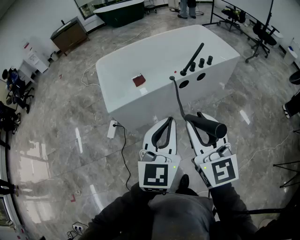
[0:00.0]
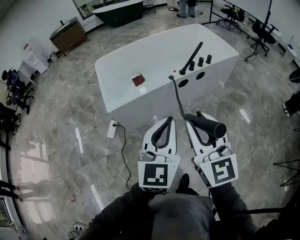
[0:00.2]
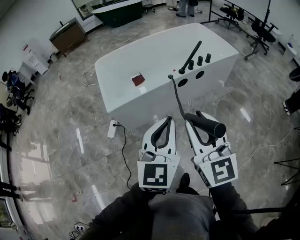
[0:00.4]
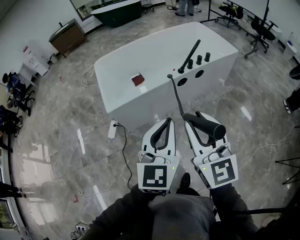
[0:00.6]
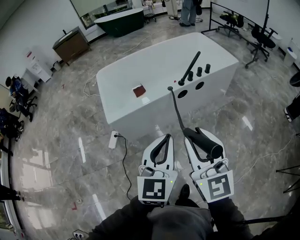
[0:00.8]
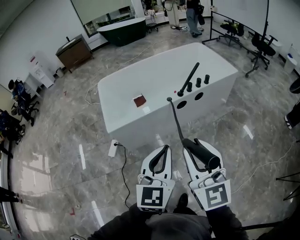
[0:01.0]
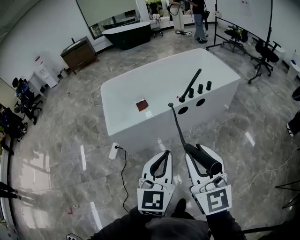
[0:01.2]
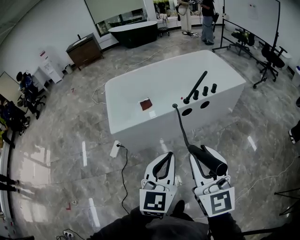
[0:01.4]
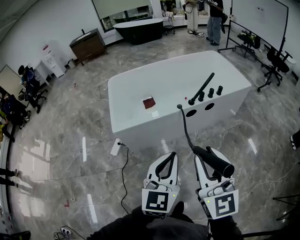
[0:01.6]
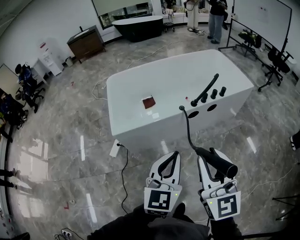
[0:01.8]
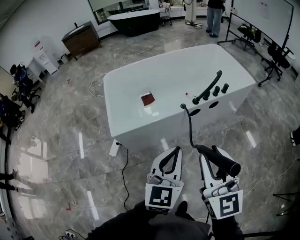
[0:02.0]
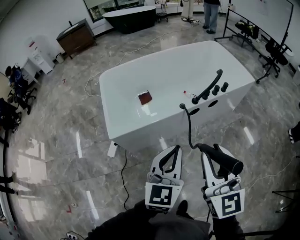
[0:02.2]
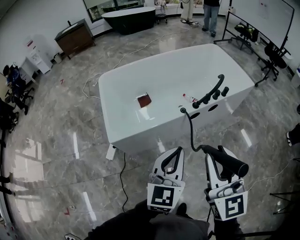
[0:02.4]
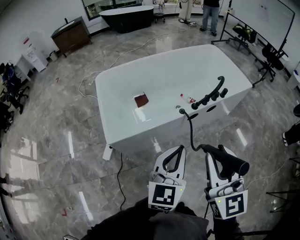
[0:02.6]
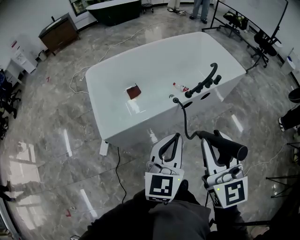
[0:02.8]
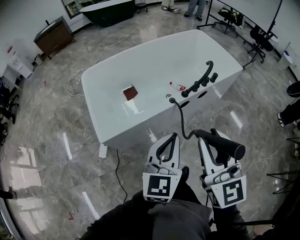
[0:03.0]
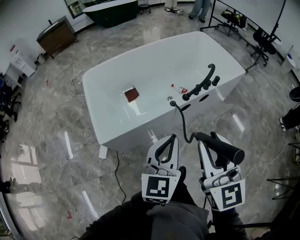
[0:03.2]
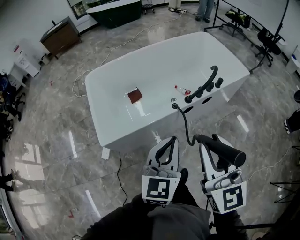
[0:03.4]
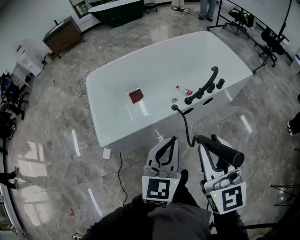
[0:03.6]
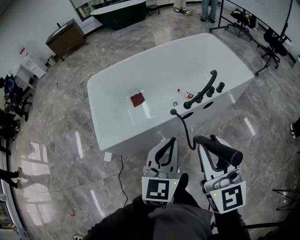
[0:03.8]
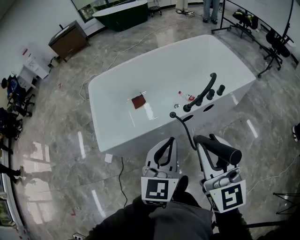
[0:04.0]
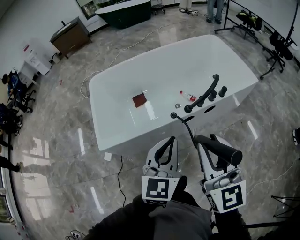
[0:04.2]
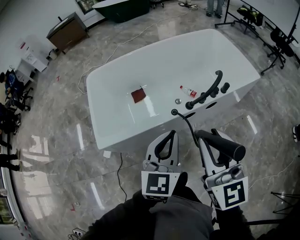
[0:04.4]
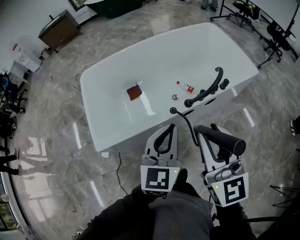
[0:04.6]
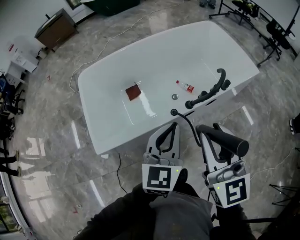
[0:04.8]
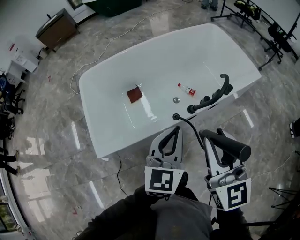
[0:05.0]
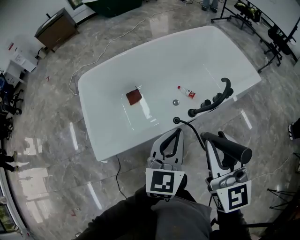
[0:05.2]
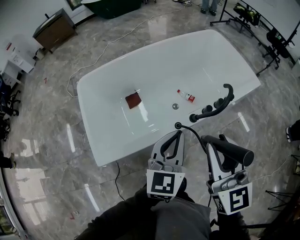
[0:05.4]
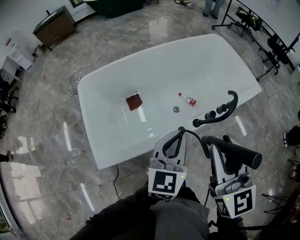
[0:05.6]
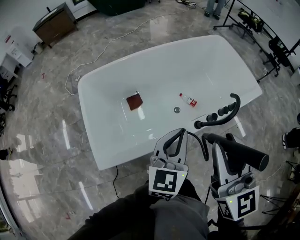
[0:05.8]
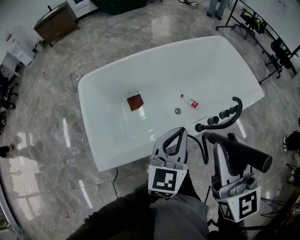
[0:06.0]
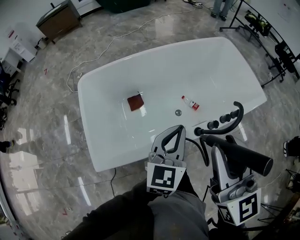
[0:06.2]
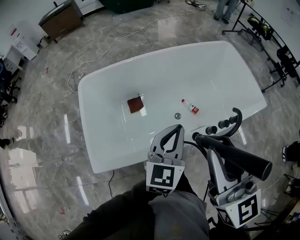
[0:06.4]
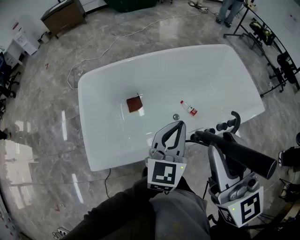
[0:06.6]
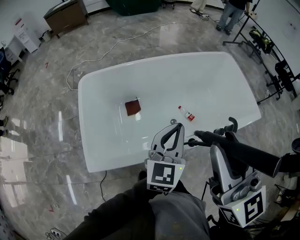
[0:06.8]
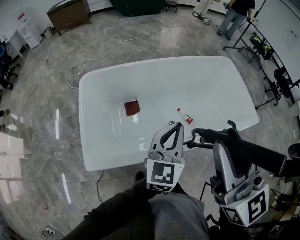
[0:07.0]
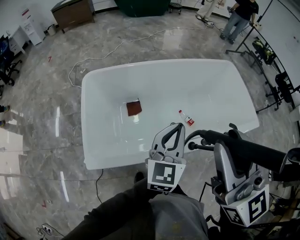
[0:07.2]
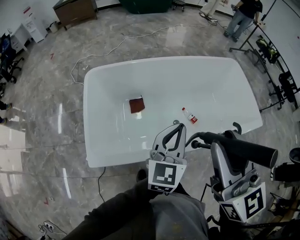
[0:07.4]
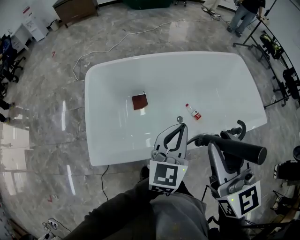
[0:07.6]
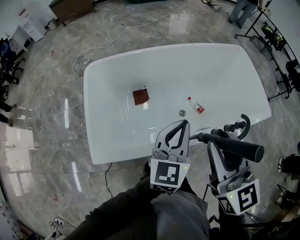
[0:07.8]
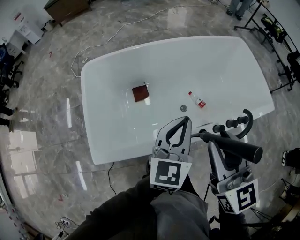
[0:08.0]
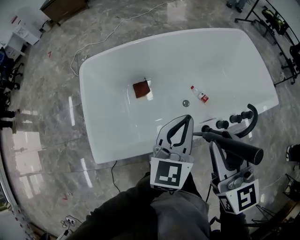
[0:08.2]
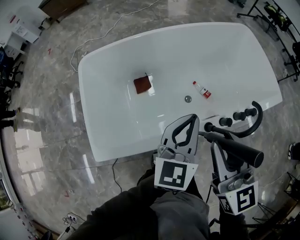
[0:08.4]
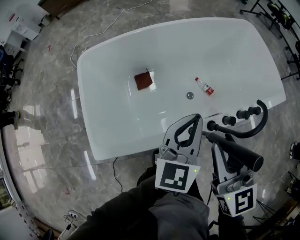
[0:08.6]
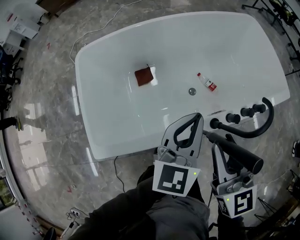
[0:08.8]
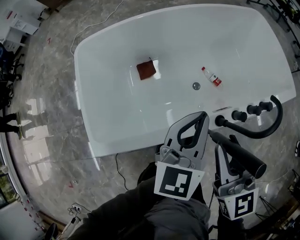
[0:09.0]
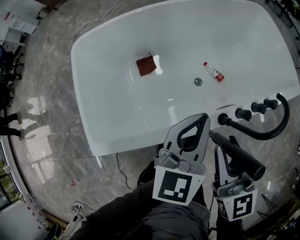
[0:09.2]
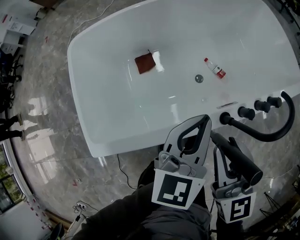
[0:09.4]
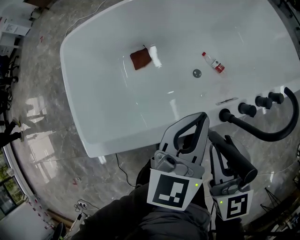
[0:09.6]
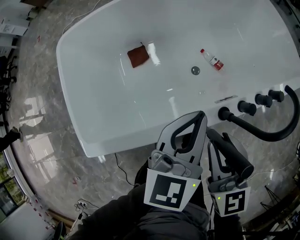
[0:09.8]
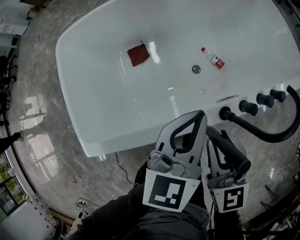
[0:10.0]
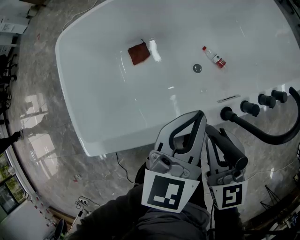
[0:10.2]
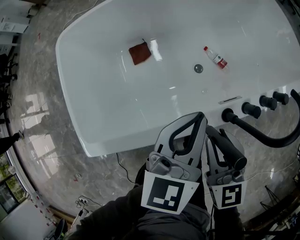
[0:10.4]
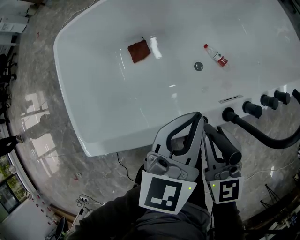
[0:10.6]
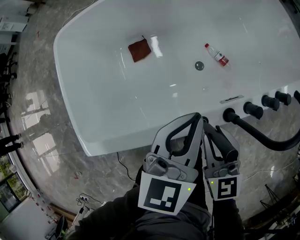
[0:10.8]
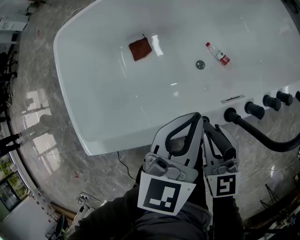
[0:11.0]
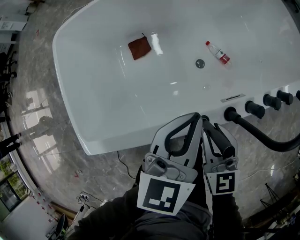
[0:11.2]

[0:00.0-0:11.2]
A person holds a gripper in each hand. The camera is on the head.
0:00.0 to 0:01.6: The left gripper ends up roughly 5 cm from where it was; the right gripper heads to the right, covering some 5 cm.
0:01.6 to 0:03.2: The two grippers go roughly 20 cm forward.
0:03.2 to 0:04.8: The two grippers go about 15 cm forward.
0:04.8 to 0:06.4: The left gripper moves forward, about 15 cm. Meanwhile the right gripper travels forward, to the left and upward by about 15 cm.
0:06.4 to 0:08.0: The right gripper moves downward, some 5 cm.
0:08.0 to 0:09.6: The left gripper shifts approximately 15 cm downward; the right gripper is displaced downward by about 20 cm.
0:09.6 to 0:11.2: The right gripper heads downward, covering roughly 15 cm.

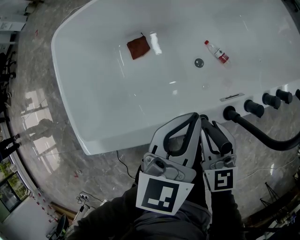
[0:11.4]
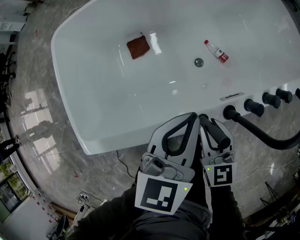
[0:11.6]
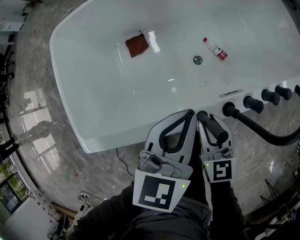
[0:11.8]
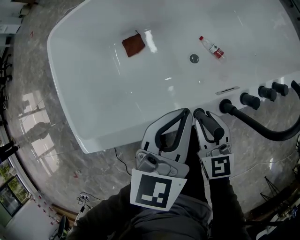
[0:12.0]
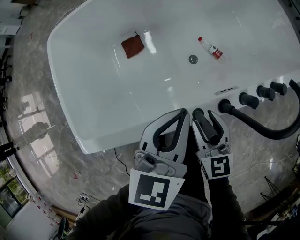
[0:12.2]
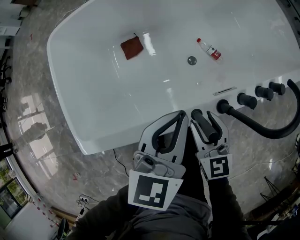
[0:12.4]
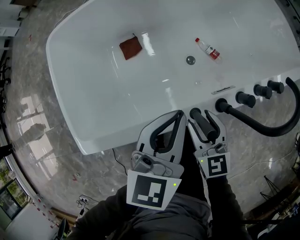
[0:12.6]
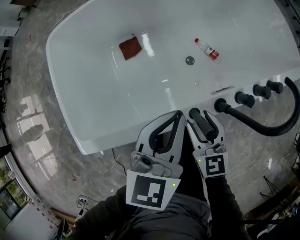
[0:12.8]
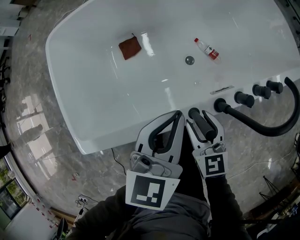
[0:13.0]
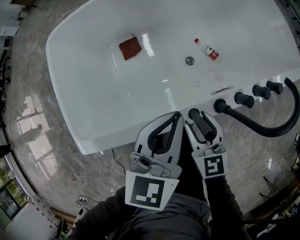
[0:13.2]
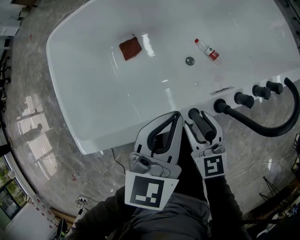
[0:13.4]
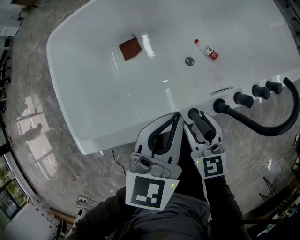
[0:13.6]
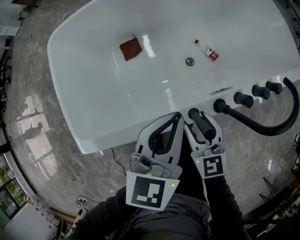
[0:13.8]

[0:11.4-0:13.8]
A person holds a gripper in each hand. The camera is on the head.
0:11.4 to 0:12.6: The right gripper opens.
0:12.6 to 0:13.8: The two grippers keep their place.

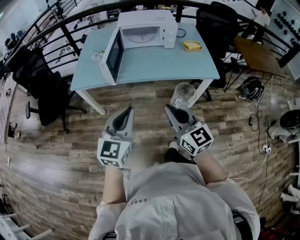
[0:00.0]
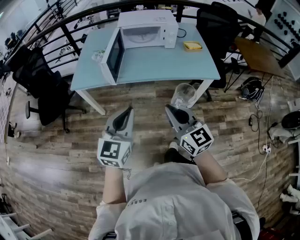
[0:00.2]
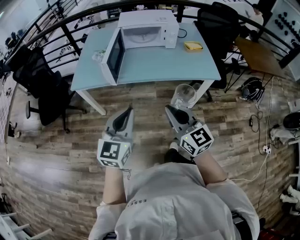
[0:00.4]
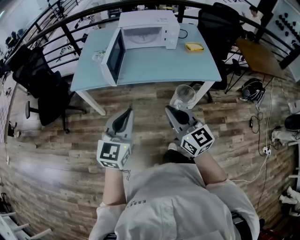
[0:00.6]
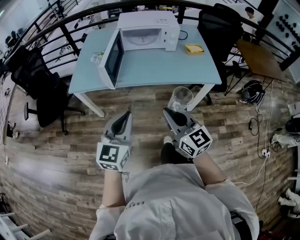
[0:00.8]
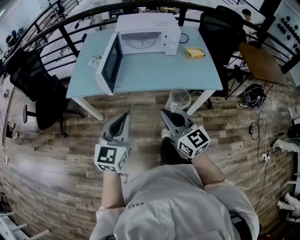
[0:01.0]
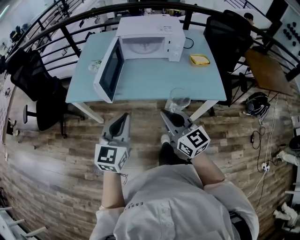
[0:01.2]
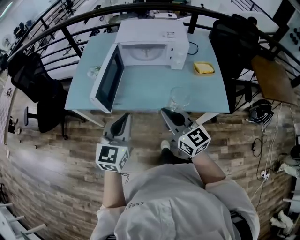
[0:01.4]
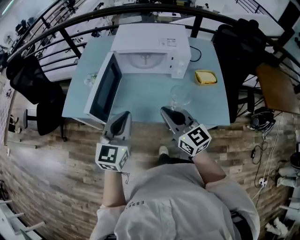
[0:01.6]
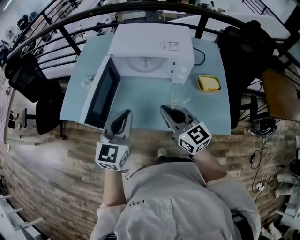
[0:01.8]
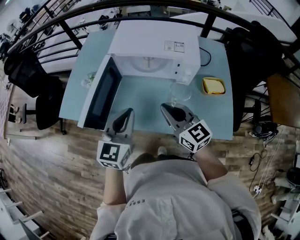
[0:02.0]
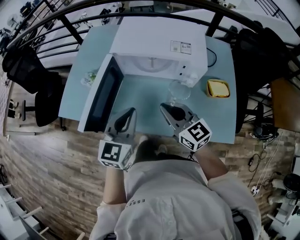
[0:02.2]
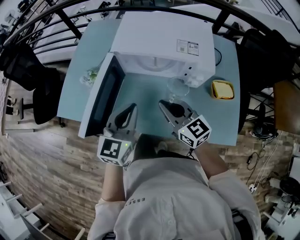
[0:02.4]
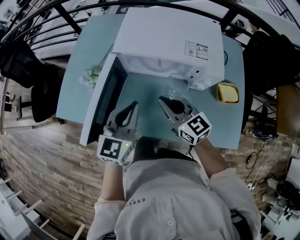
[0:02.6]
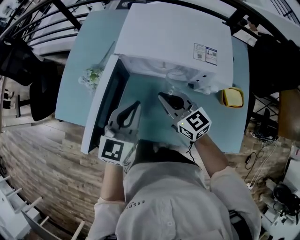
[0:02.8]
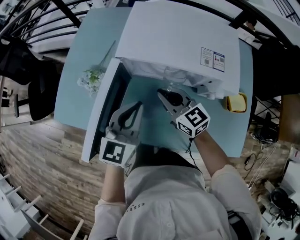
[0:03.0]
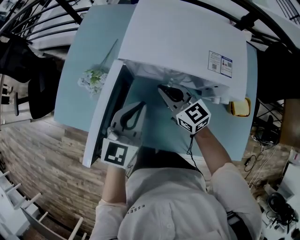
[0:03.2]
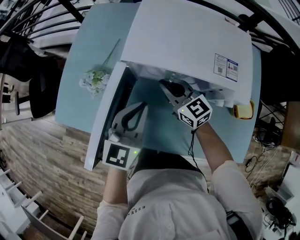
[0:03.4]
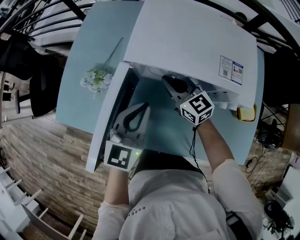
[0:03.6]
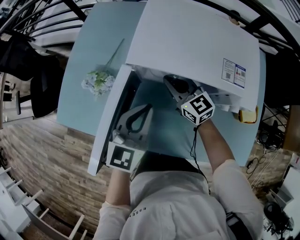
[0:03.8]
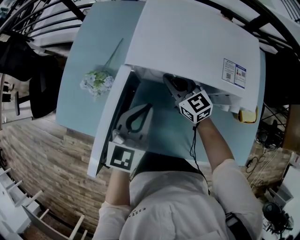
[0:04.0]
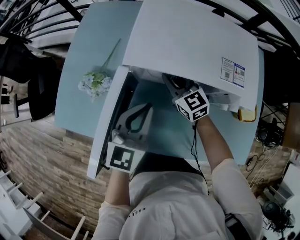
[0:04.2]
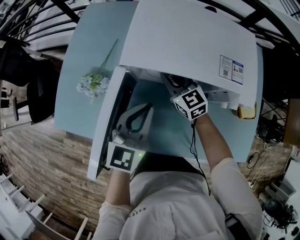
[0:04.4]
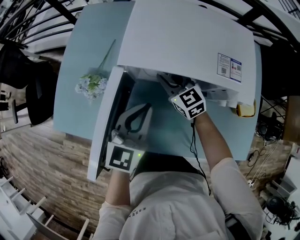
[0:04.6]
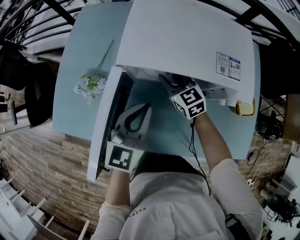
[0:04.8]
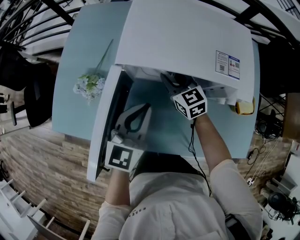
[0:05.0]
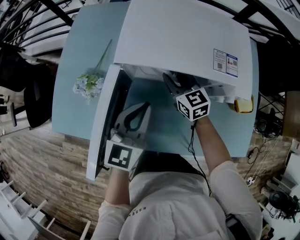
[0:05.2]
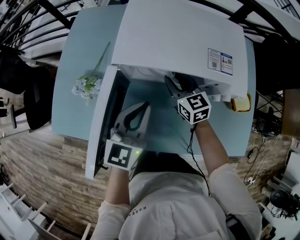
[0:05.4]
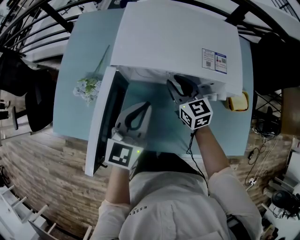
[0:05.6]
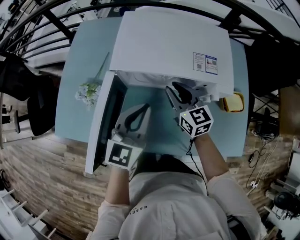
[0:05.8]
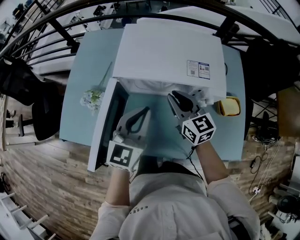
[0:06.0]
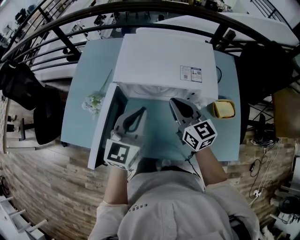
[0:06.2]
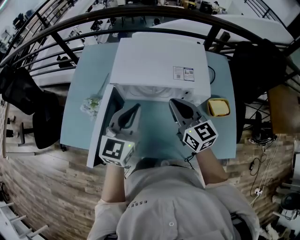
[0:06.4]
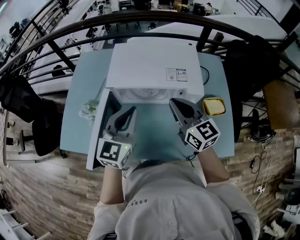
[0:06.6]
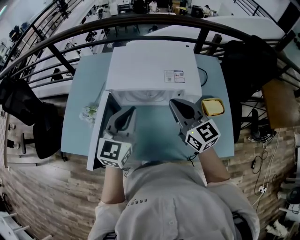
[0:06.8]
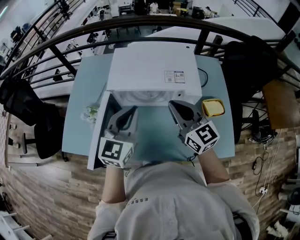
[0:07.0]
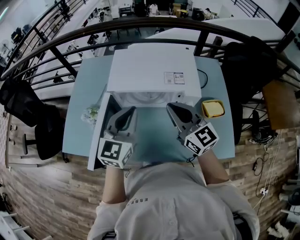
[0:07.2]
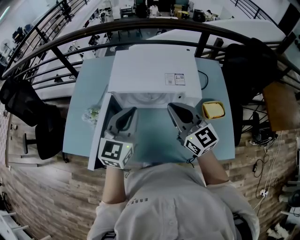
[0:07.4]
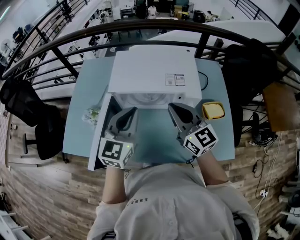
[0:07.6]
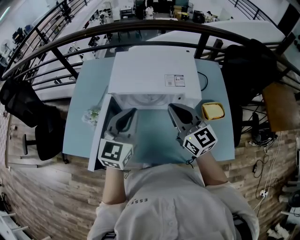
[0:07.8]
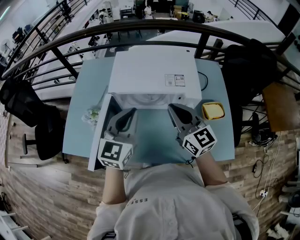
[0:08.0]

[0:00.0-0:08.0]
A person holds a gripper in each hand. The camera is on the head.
0:00.0 to 0:01.6: Both grippers travel together forward, roughly 30 cm.
0:01.6 to 0:03.2: The right gripper travels forward and downward by approximately 35 cm. The left gripper is displaced forward by some 25 cm.
0:03.2 to 0:04.8: The right gripper moves forward and downward, approximately 10 cm.
0:04.8 to 0:06.4: The left gripper is displaced upward by about 10 cm, while the right gripper is displaced upward, backward and to the right by about 25 cm, and rotates about 20 degrees.
0:06.4 to 0:08.0: The right gripper shifts by about 5 cm.

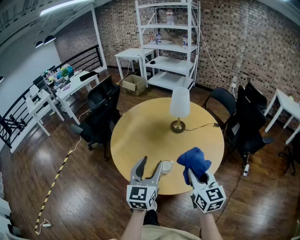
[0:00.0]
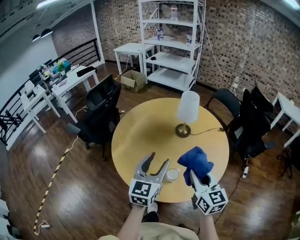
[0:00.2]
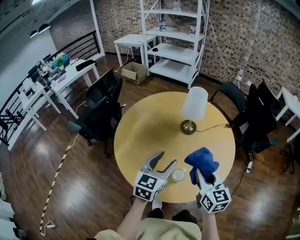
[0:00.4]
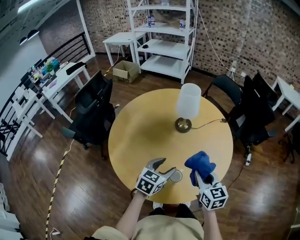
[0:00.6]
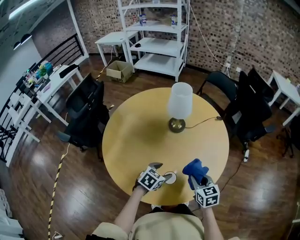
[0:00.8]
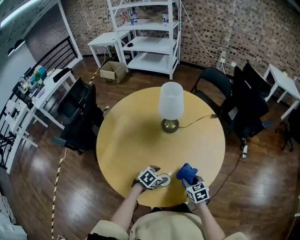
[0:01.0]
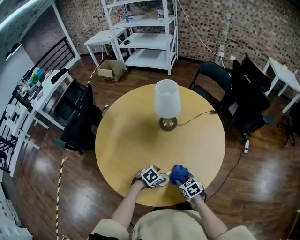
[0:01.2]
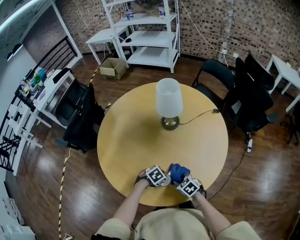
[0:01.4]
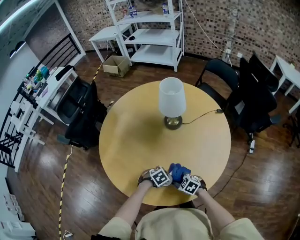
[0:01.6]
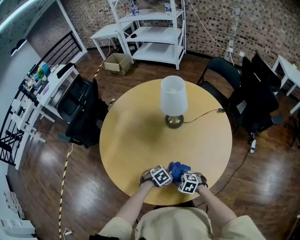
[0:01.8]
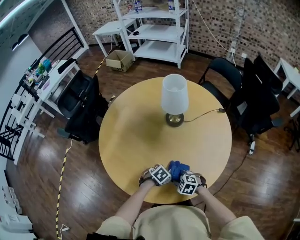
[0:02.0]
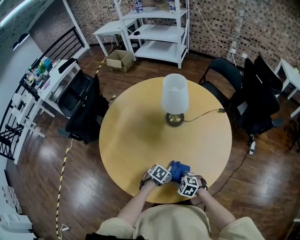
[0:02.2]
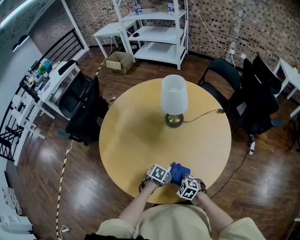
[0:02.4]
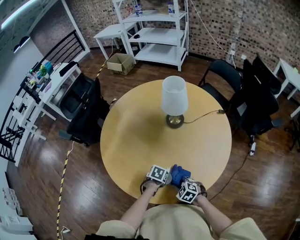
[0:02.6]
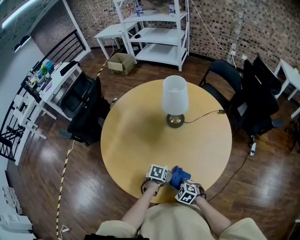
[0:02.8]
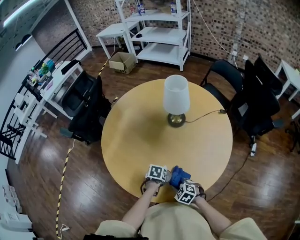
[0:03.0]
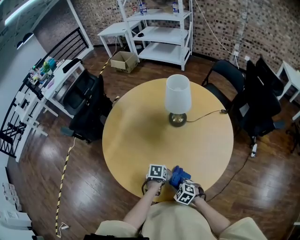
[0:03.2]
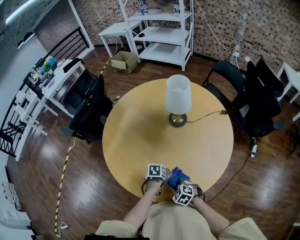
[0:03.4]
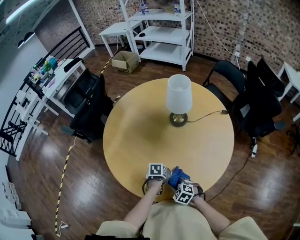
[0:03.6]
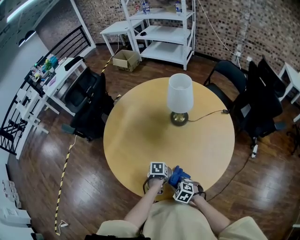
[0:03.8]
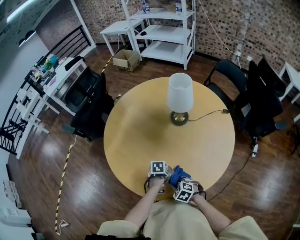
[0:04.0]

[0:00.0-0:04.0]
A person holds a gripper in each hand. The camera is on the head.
0:00.0 to 0:01.4: The right gripper shifts roughly 35 cm downward, and points its fingers some 40 degrees further downward.
0:01.4 to 0:02.6: The right gripper changes its angle by approximately 20 degrees.
